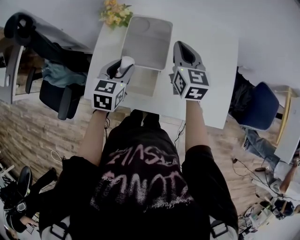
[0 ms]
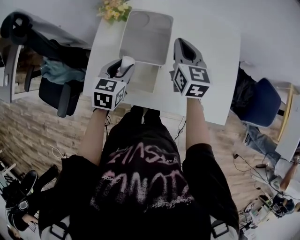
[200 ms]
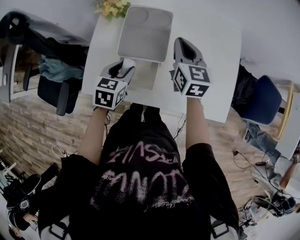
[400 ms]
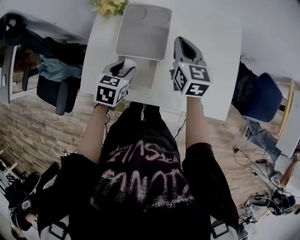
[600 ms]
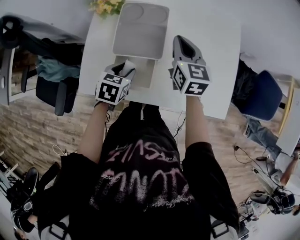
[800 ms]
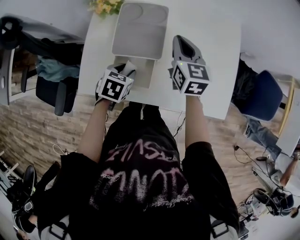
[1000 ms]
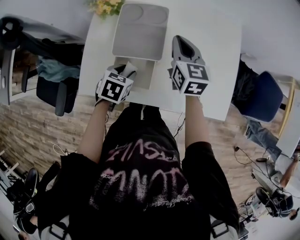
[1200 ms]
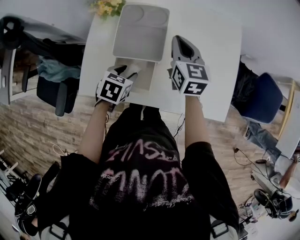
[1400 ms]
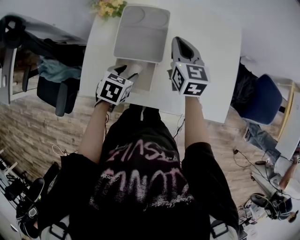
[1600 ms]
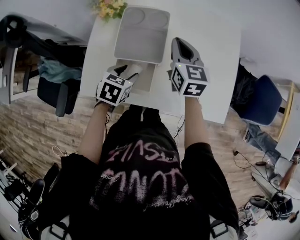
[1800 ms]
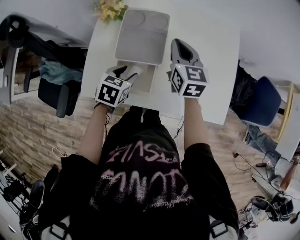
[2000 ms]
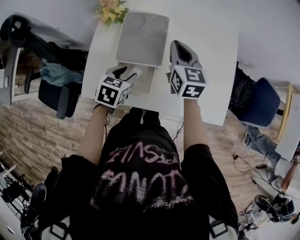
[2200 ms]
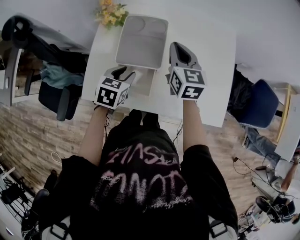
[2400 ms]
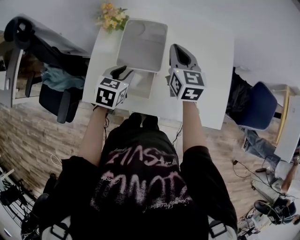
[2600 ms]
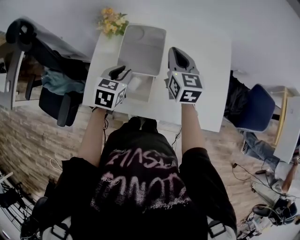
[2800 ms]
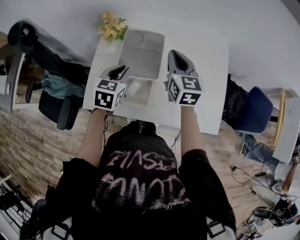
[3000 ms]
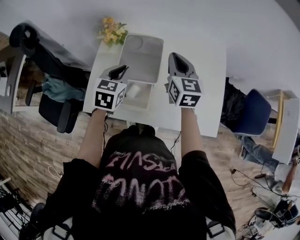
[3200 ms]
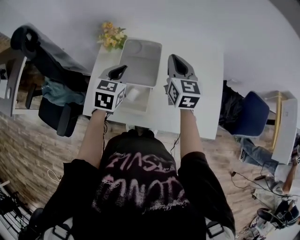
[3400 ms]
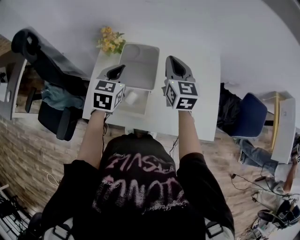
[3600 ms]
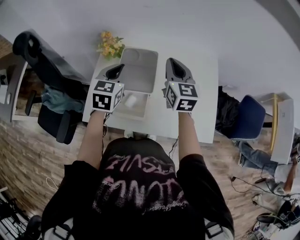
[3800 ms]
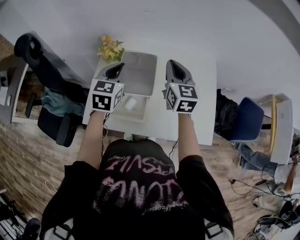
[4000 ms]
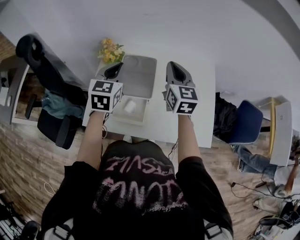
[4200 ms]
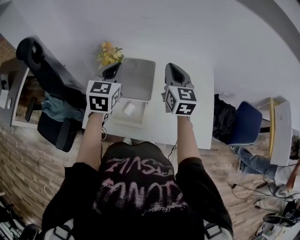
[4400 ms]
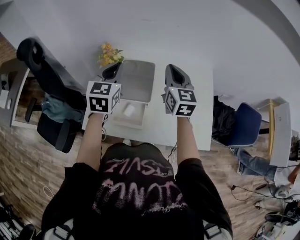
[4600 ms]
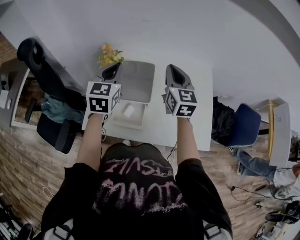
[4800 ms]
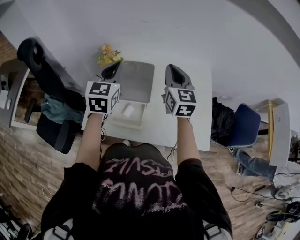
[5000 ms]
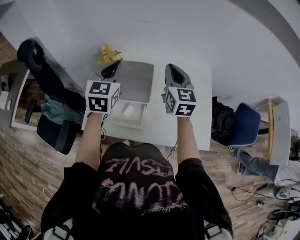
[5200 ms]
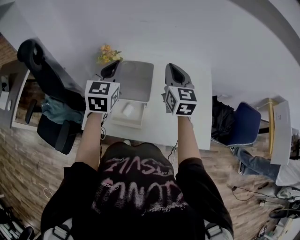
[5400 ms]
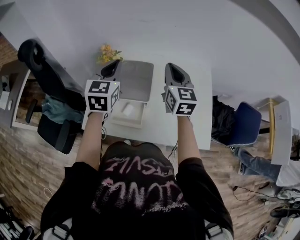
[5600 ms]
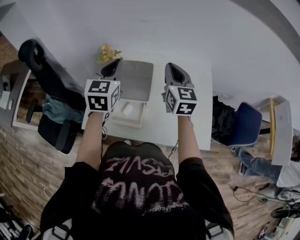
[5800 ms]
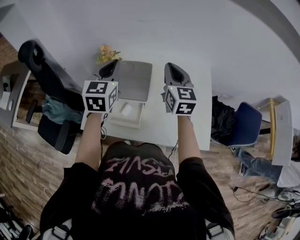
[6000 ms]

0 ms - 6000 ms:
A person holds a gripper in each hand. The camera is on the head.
0 ms - 1600 ms: The left gripper goes some 10 cm downward, and turns by some 30 degrees.
1600 ms - 3000 ms: The left gripper heads upward and forward, covering approximately 15 cm, turns by about 20 degrees, and closes. Meanwhile the right gripper heads upward, covering about 5 cm.
3000 ms - 4400 ms: The right gripper is displaced upward by approximately 10 cm. Meanwhile the left gripper heads upward, covering approximately 15 cm, and rotates some 20 degrees.
4400 ms - 6000 ms: The grippers move only a little.

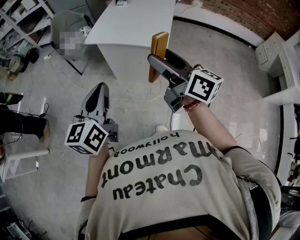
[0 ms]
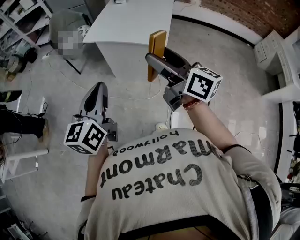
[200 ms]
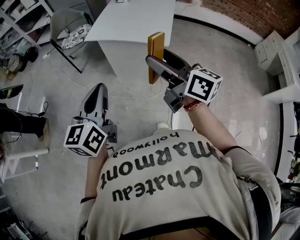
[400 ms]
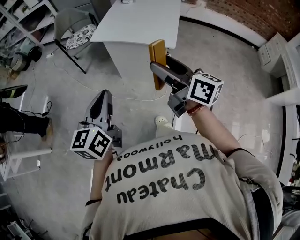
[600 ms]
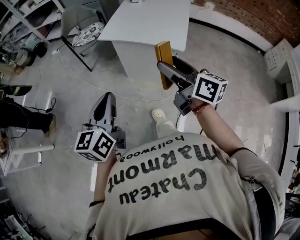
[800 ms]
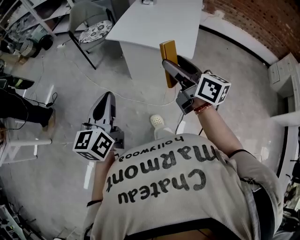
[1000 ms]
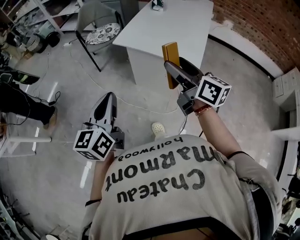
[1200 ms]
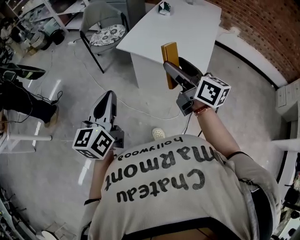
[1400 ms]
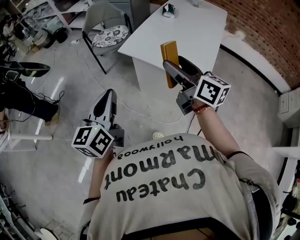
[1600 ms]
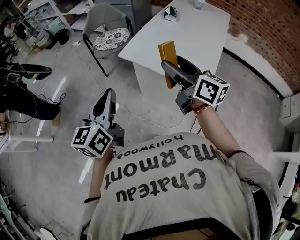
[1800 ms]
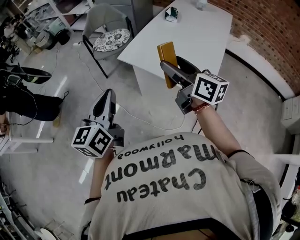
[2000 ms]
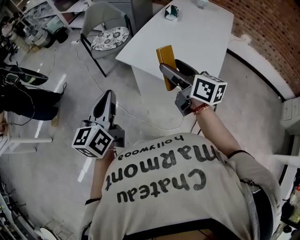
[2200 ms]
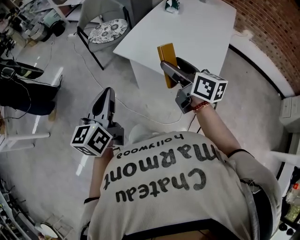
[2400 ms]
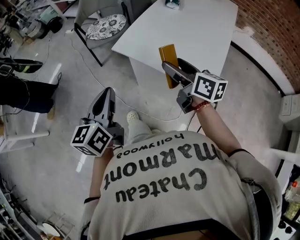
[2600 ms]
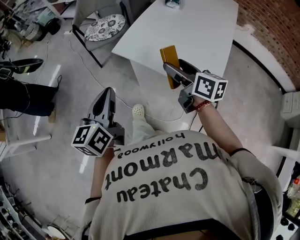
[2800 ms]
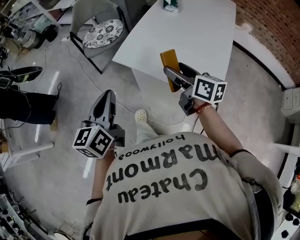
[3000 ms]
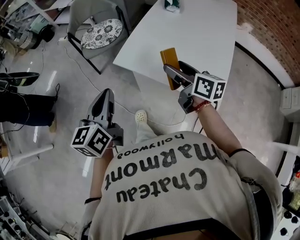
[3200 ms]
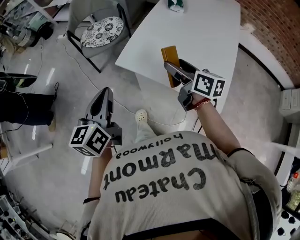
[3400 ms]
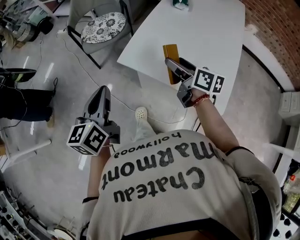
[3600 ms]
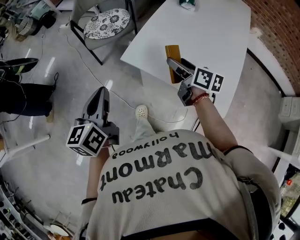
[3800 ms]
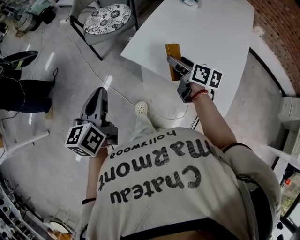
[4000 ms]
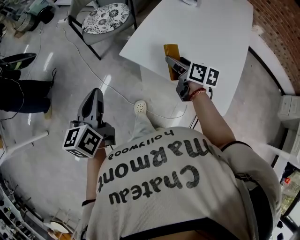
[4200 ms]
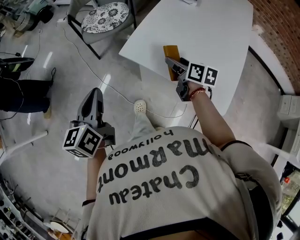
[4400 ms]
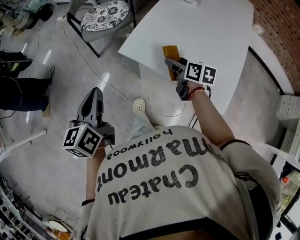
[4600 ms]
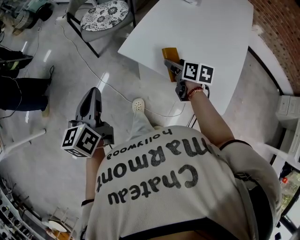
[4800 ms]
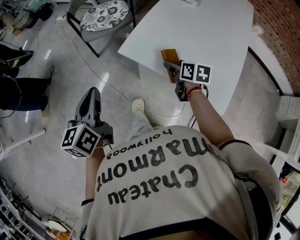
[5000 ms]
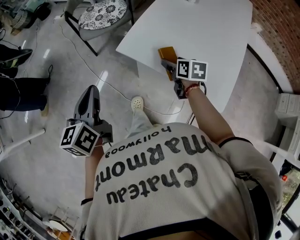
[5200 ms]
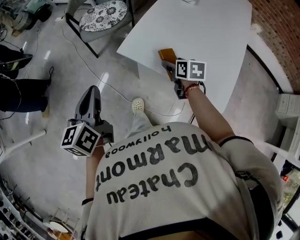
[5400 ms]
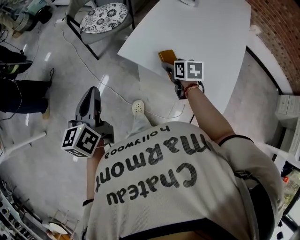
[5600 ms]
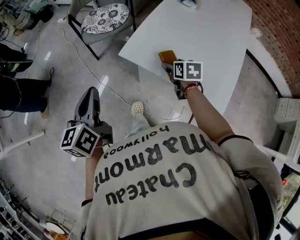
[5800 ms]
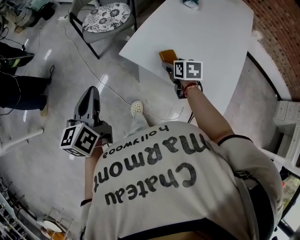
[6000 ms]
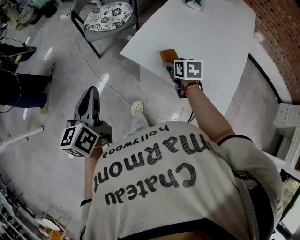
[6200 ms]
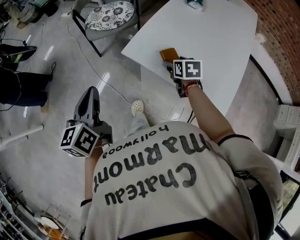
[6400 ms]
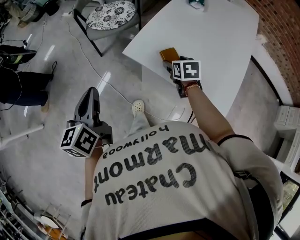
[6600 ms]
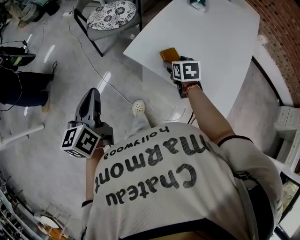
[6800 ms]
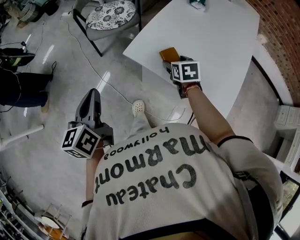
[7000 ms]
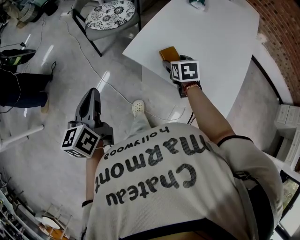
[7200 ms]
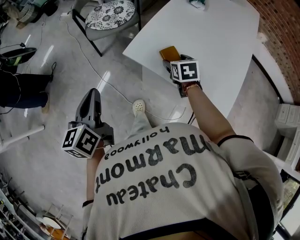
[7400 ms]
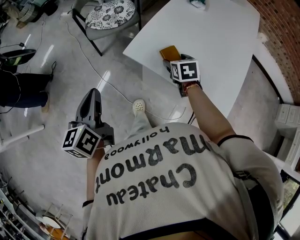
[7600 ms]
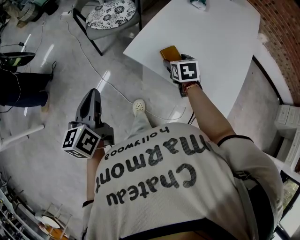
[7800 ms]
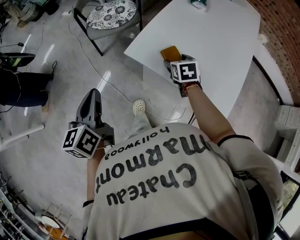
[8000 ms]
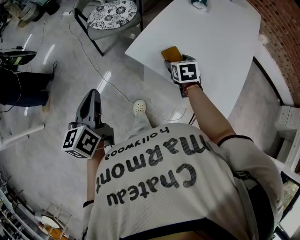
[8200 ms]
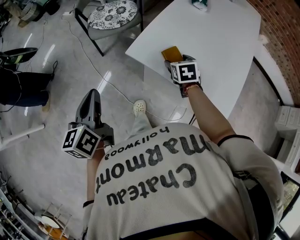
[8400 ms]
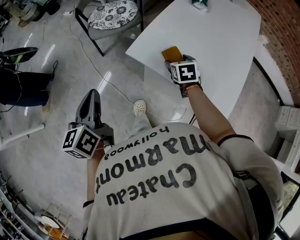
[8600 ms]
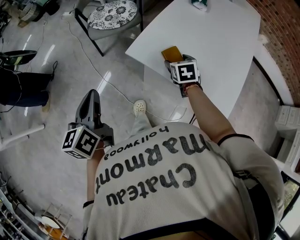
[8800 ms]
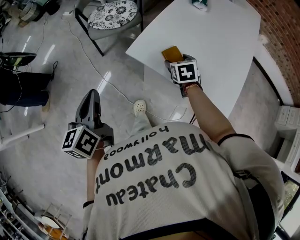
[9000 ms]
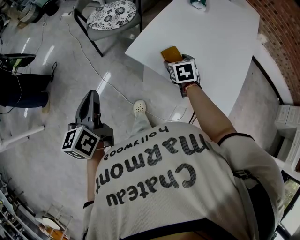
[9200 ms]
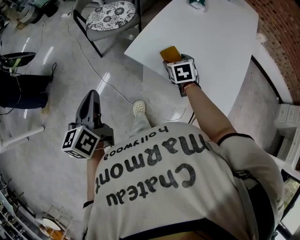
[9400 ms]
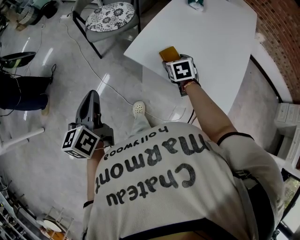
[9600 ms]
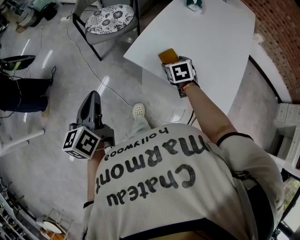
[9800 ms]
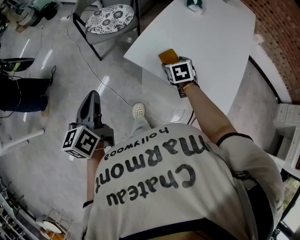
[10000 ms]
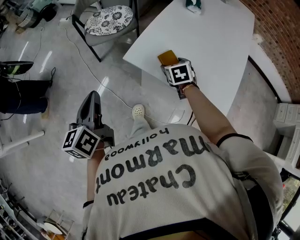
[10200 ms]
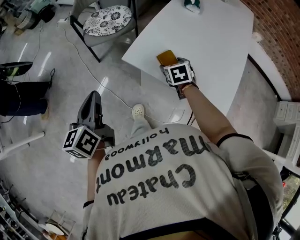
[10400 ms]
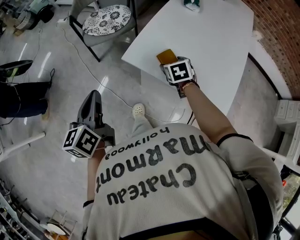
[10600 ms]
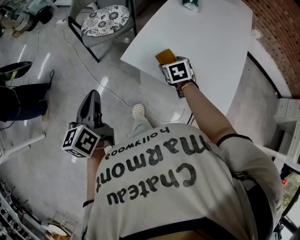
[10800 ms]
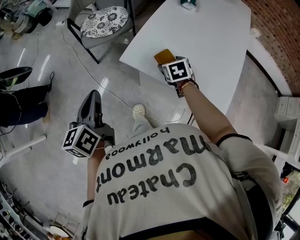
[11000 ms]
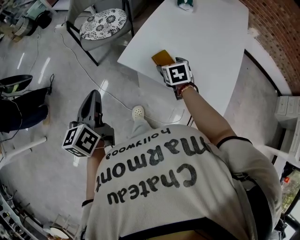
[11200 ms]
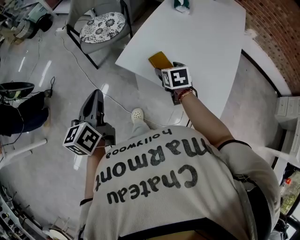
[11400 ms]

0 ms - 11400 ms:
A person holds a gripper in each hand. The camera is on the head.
0 ms - 1400 ms: The left gripper travels forward and to the left by roughly 15 cm; the right gripper is displaced forward by roughly 20 cm.
1400 ms - 2800 ms: The right gripper travels forward and downward by some 25 cm, while the left gripper goes roughly 20 cm forward.
2800 ms - 4200 ms: The right gripper heads forward and downward, covering approximately 20 cm. The left gripper heads forward and to the left, covering some 15 cm.
4200 ms - 5600 ms: The right gripper is displaced downward by some 5 cm, and swivels approximately 30 degrees.
5600 ms - 7200 ms: The grippers stay close to where they were, moving slightly.
7200 ms - 10000 ms: The grippers stay close to where they were, moving slightly.
10000 ms - 11400 ms: The left gripper moves about 5 cm.

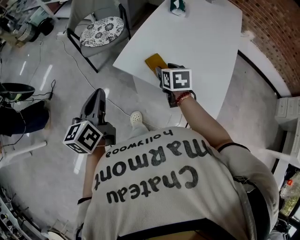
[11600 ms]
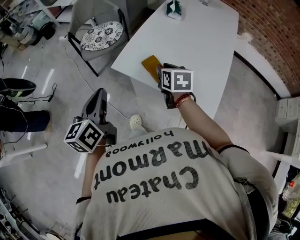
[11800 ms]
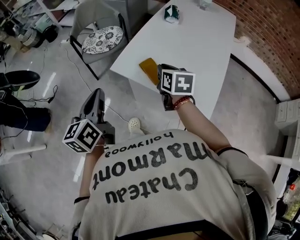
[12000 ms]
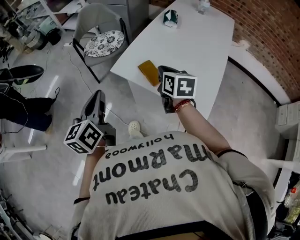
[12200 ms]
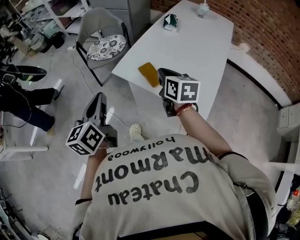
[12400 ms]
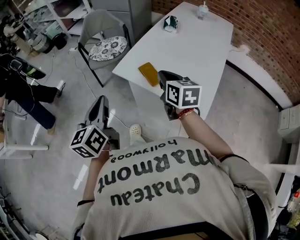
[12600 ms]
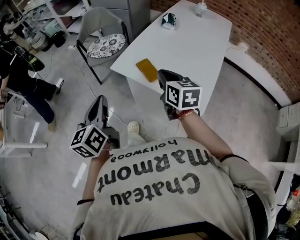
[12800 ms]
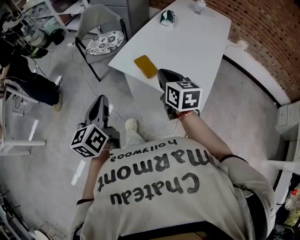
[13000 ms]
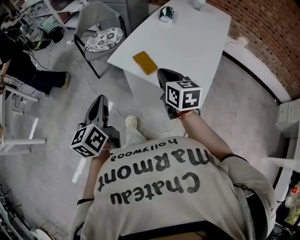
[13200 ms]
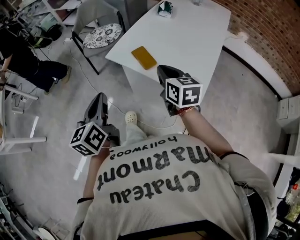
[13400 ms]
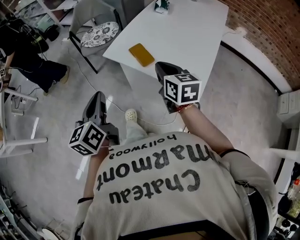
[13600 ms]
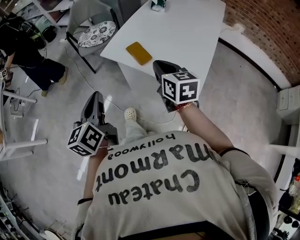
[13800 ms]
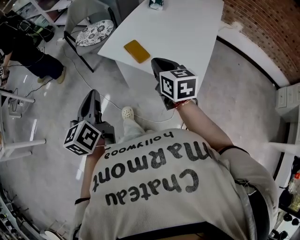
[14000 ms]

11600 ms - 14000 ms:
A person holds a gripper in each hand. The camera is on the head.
11600 ms - 12800 ms: The right gripper is displaced upward and backward by some 20 cm, rotates some 20 degrees, and closes up. The left gripper shifts approximately 15 cm backward, to the right and upward.
12800 ms - 14000 ms: The grippers stay close to where they were, moving slightly.

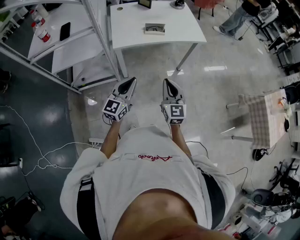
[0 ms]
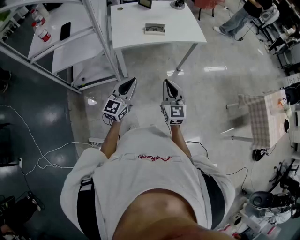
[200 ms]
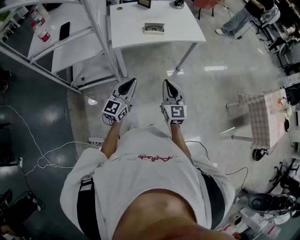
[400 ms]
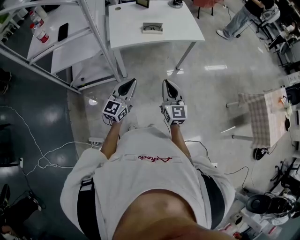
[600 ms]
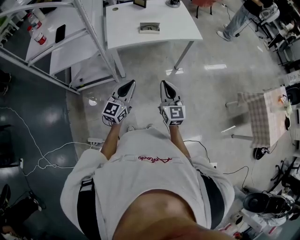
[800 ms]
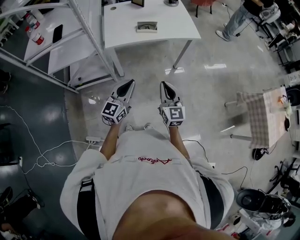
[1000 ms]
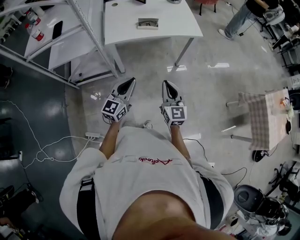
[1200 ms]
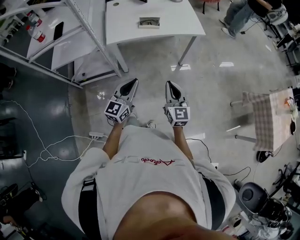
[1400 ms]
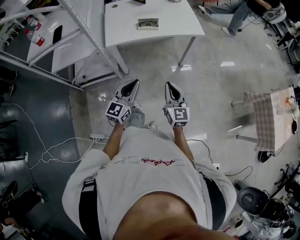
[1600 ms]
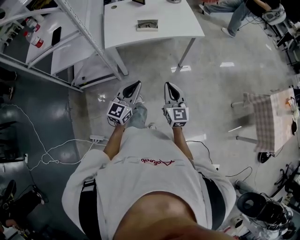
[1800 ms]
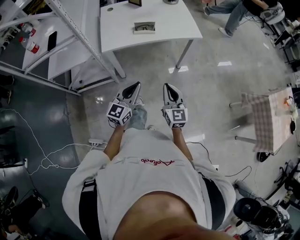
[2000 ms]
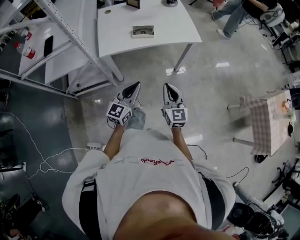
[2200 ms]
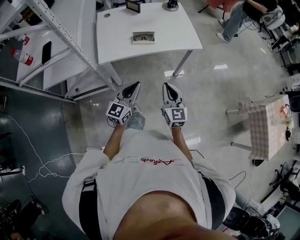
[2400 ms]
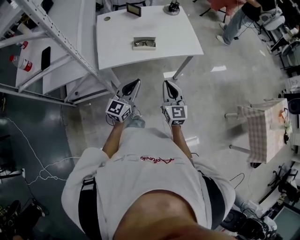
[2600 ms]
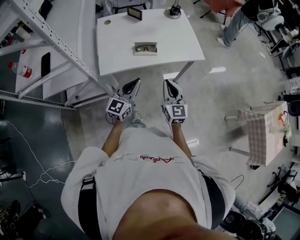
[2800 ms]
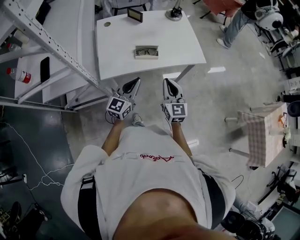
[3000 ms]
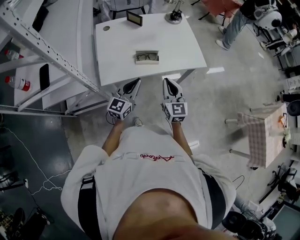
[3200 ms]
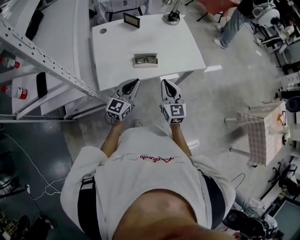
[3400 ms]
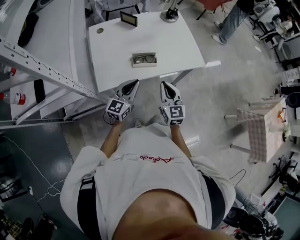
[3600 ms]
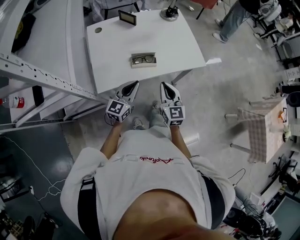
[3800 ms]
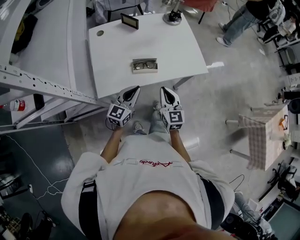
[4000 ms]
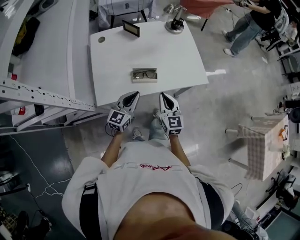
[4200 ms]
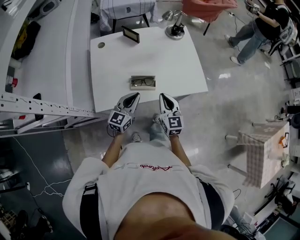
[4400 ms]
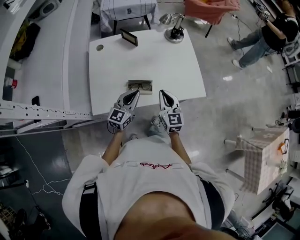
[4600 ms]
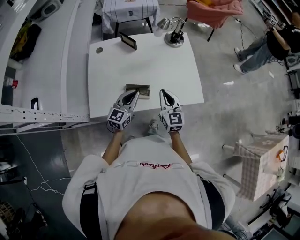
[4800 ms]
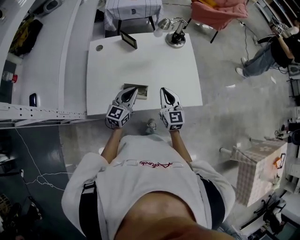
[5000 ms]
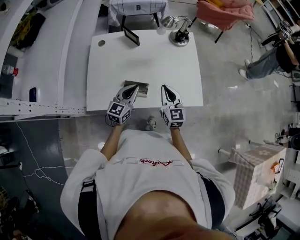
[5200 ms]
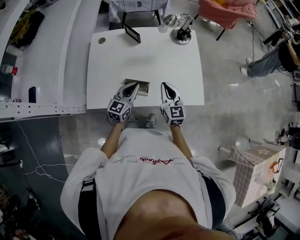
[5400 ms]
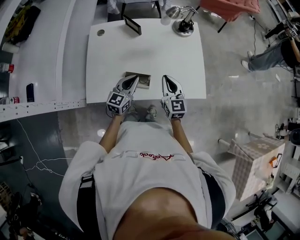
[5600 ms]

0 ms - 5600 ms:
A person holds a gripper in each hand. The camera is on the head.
0 ms - 1400 ms: Both grippers move to the right, approximately 10 cm.
1400 ms - 2800 ms: Both grippers travel together forward, about 25 cm.
2800 ms - 4200 ms: The left gripper moves forward and downward, some 15 cm. The right gripper travels forward by approximately 15 cm.
4200 ms - 5600 ms: The grippers both shift forward by roughly 15 cm.
